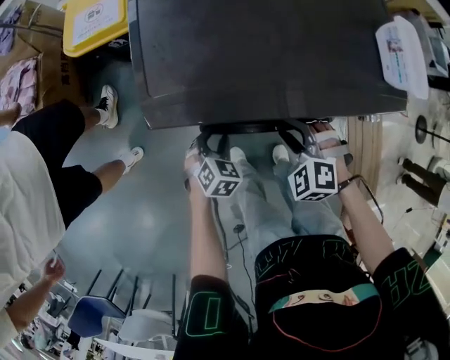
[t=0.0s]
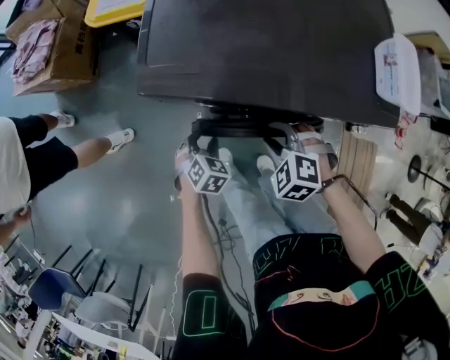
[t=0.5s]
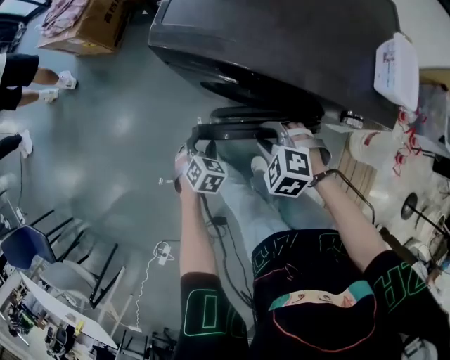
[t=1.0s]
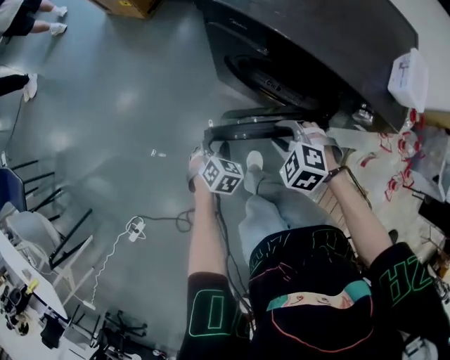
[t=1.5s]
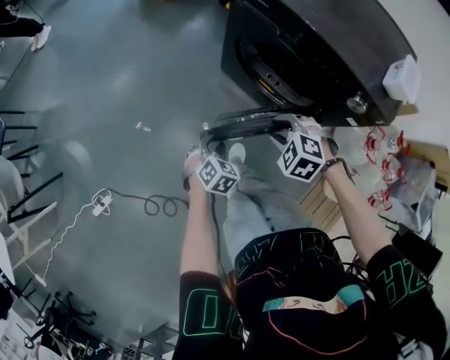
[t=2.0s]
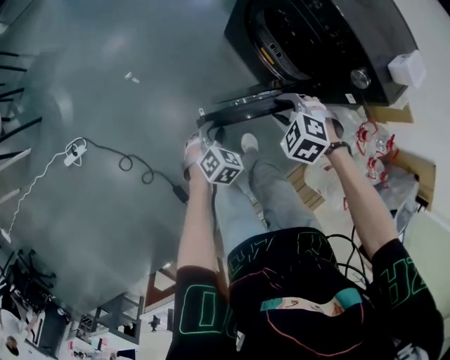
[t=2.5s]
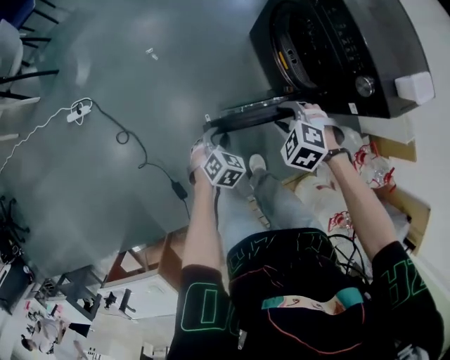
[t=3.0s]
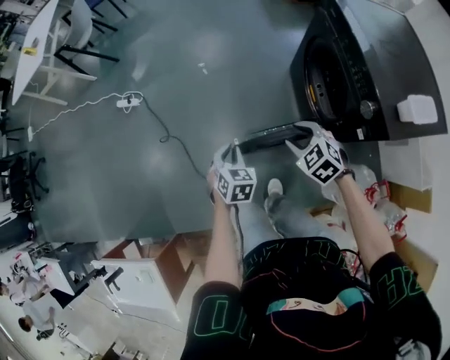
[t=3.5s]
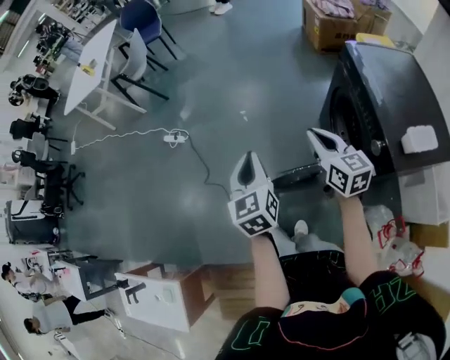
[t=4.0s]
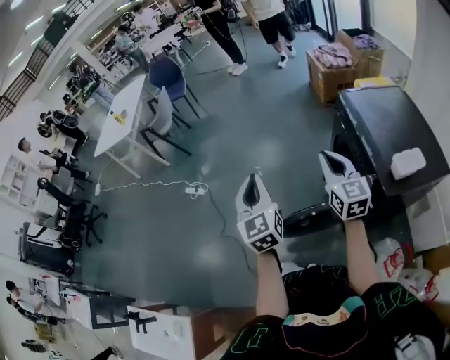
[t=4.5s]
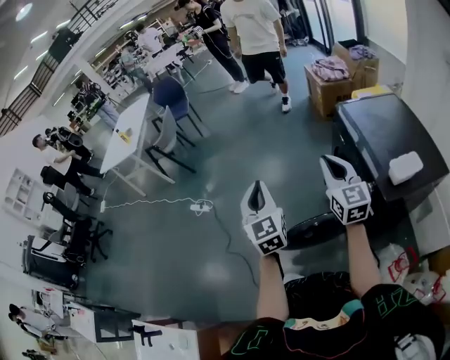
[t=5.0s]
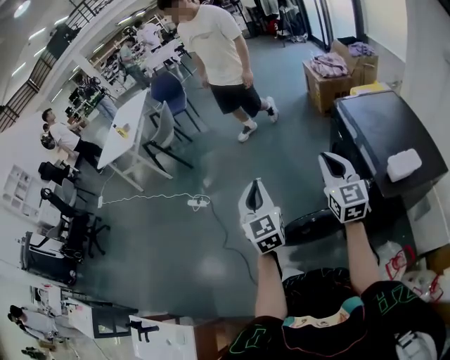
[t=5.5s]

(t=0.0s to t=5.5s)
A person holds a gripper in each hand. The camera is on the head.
t=0.0s - t=2.0s: The left gripper changes place by about 35 cm, and rotates some 50 degrees. The right gripper shifts by about 25 cm, and turns by some 40 degrees.
t=2.0s - t=3.5s: The left gripper shifts by some 30 cm, and twists about 50 degrees counterclockwise, seen from behind; the right gripper changes place by some 20 cm, and changes its angle by roughly 30 degrees.
t=3.5s - t=5.5s: The grippers both shift upward by roughly 35 cm. The left gripper tilts its fingers roughly 50 degrees upward, while the right gripper angles its fingers upward, by some 50 degrees, and closes up.

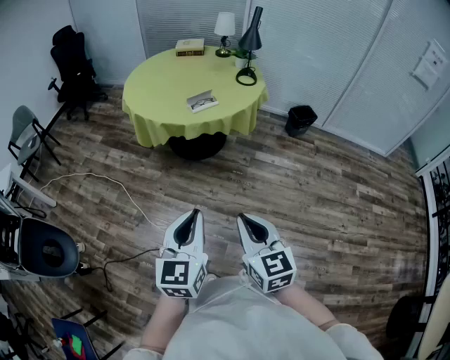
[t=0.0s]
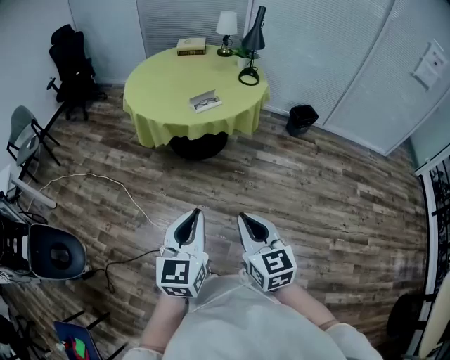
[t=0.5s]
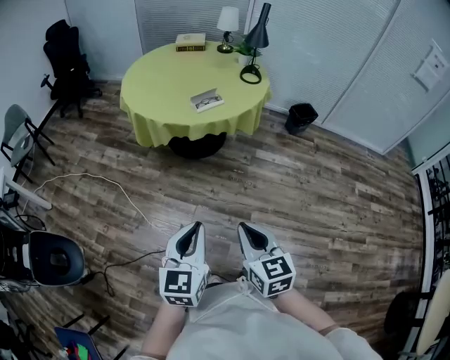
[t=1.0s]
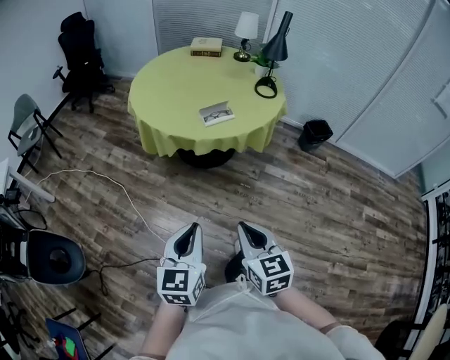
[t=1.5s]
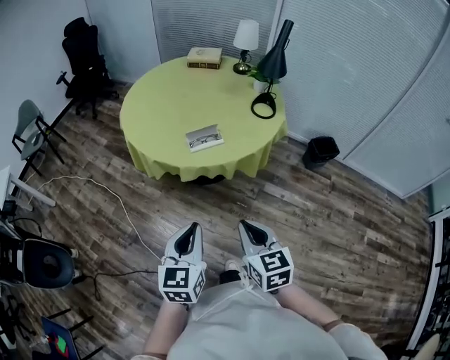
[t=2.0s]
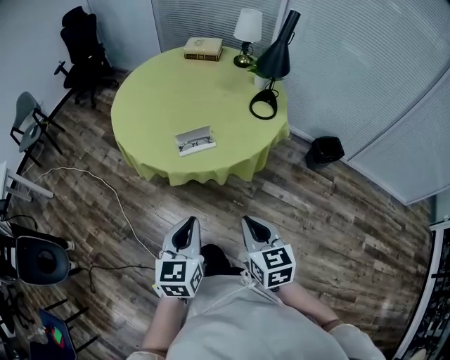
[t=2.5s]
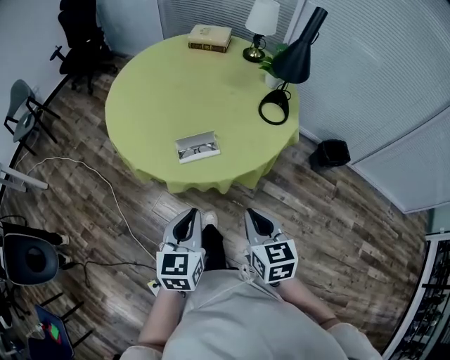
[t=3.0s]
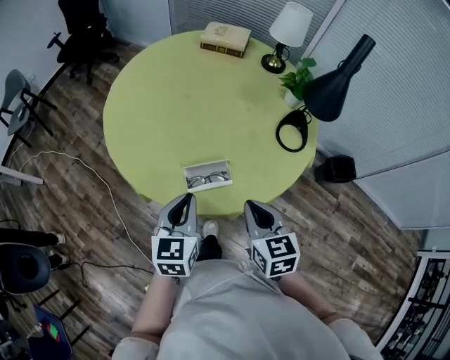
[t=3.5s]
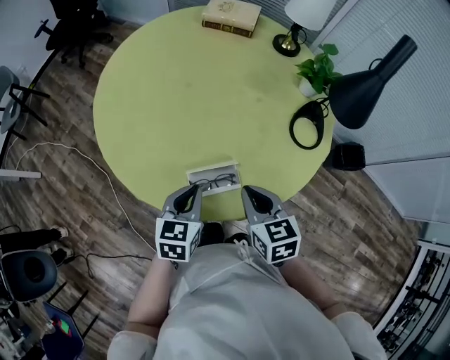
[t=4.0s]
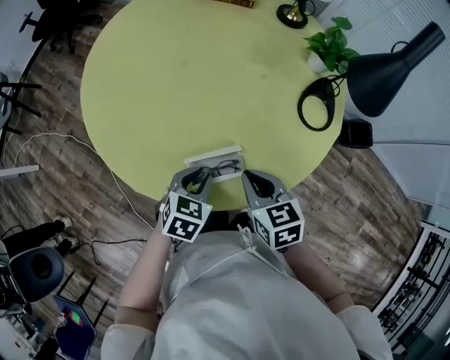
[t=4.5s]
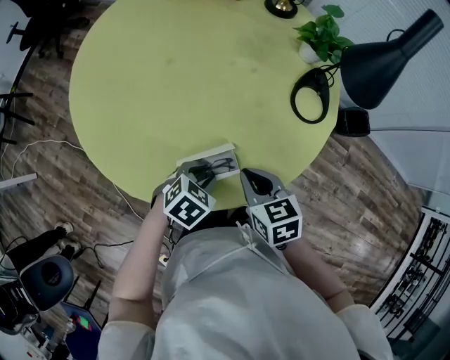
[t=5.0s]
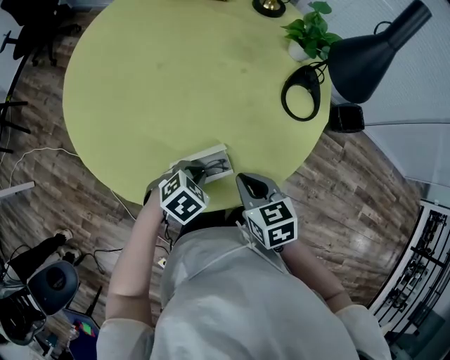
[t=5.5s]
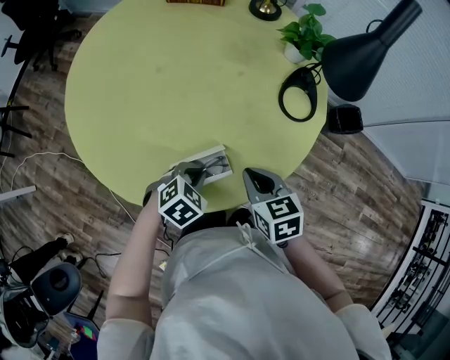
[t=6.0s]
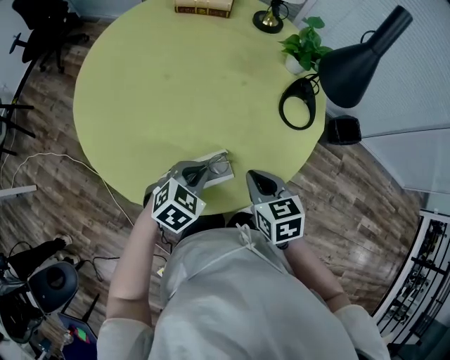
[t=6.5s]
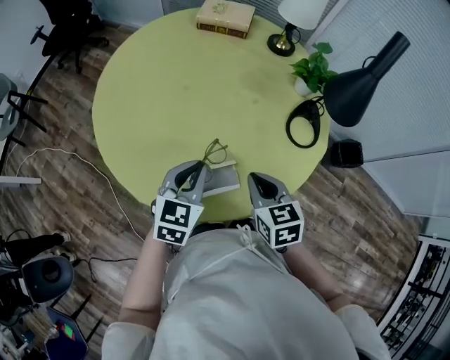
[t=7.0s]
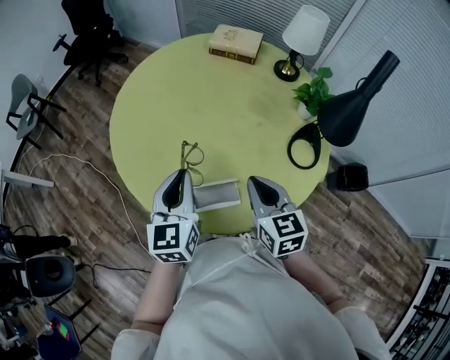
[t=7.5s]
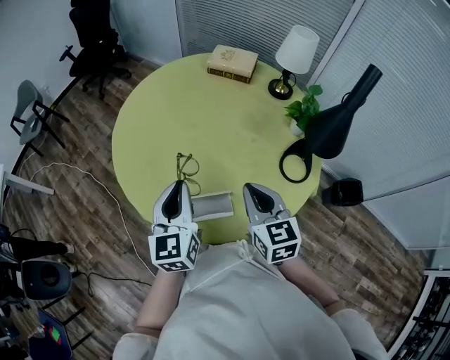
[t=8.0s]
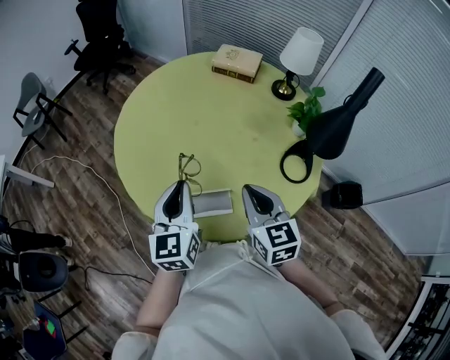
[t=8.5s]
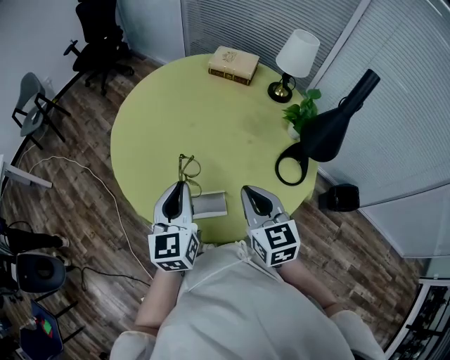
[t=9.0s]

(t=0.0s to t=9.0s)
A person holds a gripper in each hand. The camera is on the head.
t=0.0s - t=2.0s: The two grippers go roughly 30 cm forward.
t=2.0s - t=4.5s: The two grippers travel together, forward, approximately 50 cm. The left gripper heads downward, covering about 25 cm, and points its fingers roughly 30 degrees further downward. The right gripper swivels some 20 degrees.
t=4.5s - t=7.0s: The right gripper moves approximately 5 cm; the left gripper is displaced upward by some 10 cm, and swivels approximately 20 degrees.
t=7.0s - t=9.0s: Both grippers travel together upward, some 10 cm. The left gripper changes its angle by roughly 40 degrees; the right gripper swivels approximately 20 degrees.

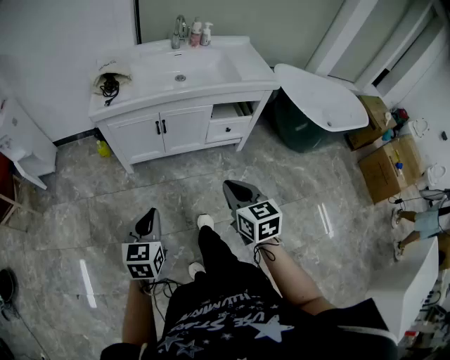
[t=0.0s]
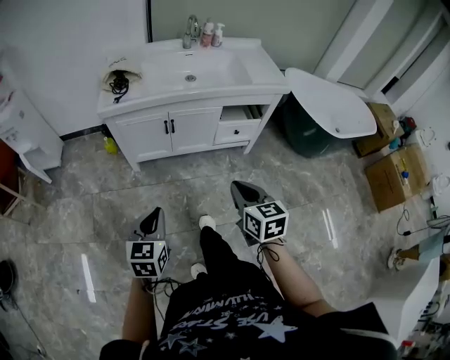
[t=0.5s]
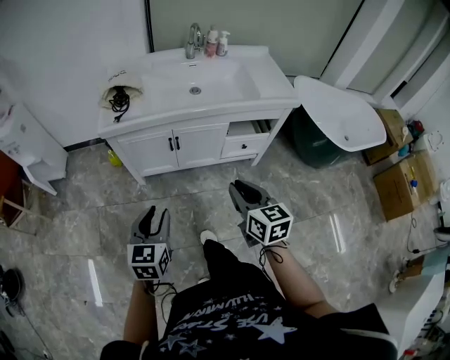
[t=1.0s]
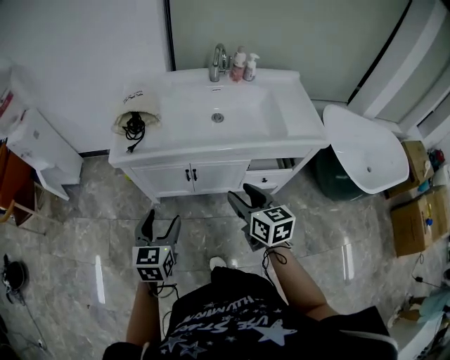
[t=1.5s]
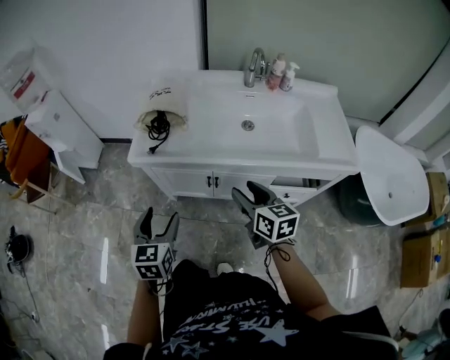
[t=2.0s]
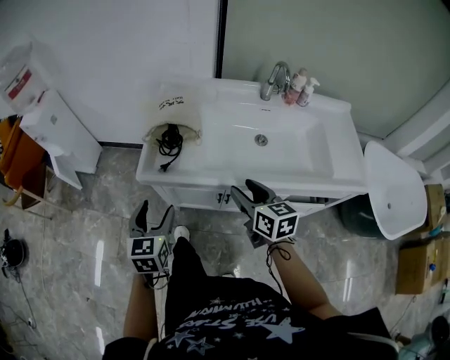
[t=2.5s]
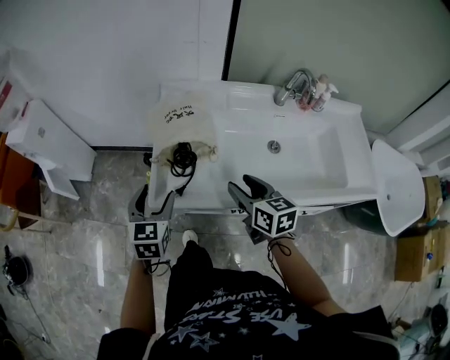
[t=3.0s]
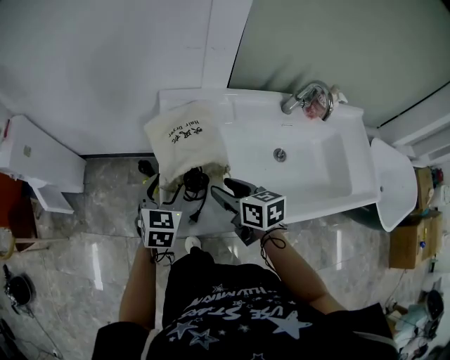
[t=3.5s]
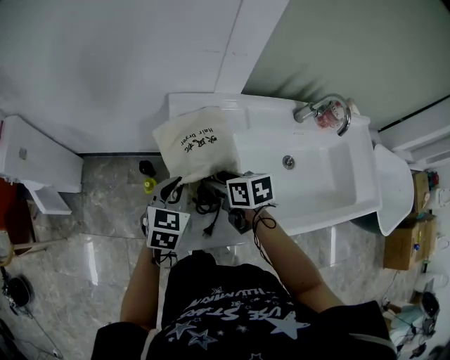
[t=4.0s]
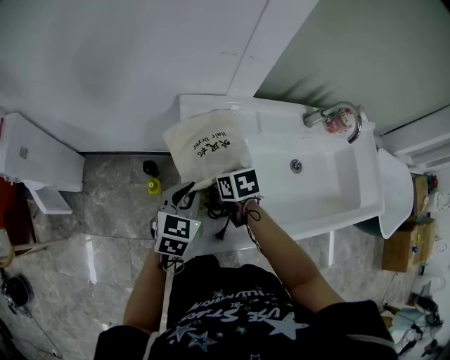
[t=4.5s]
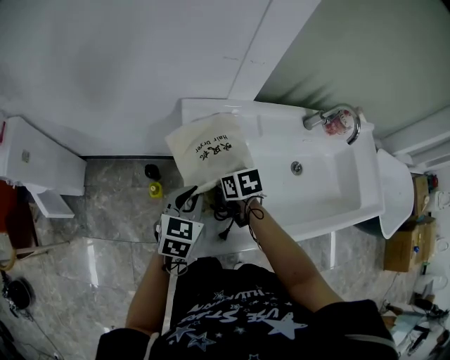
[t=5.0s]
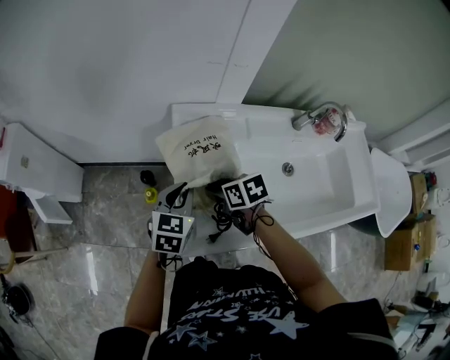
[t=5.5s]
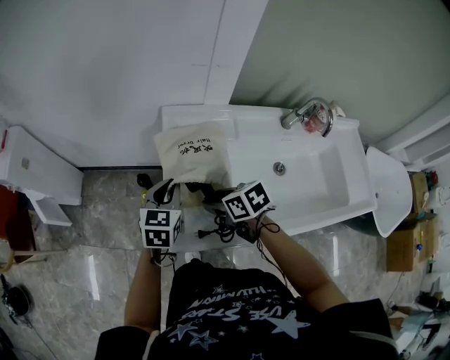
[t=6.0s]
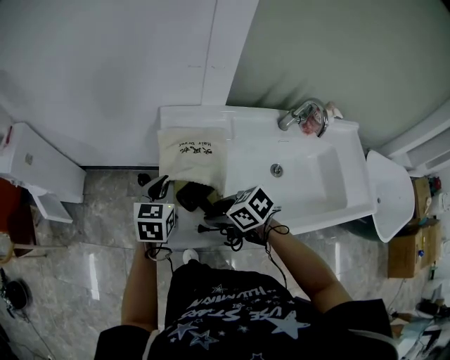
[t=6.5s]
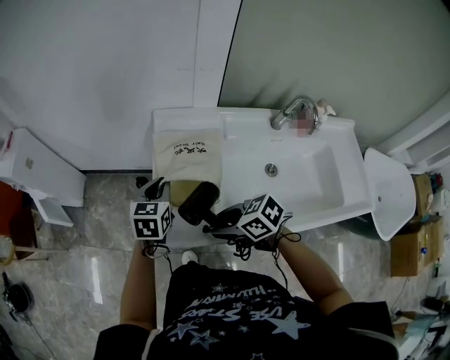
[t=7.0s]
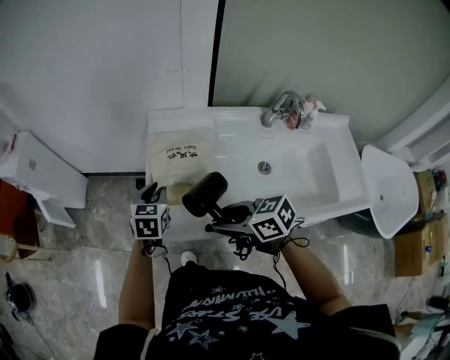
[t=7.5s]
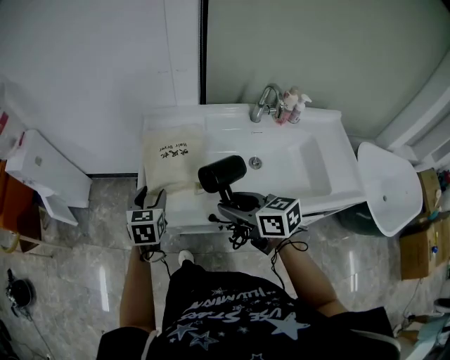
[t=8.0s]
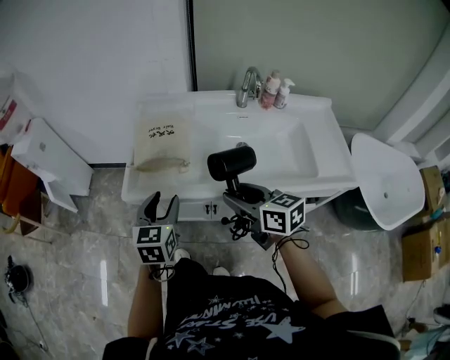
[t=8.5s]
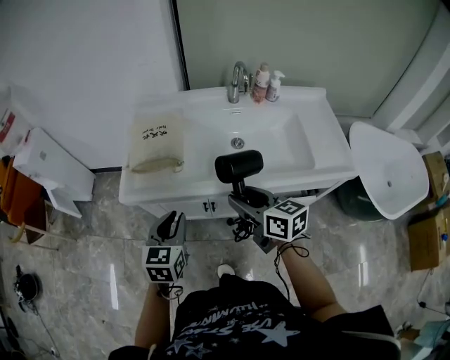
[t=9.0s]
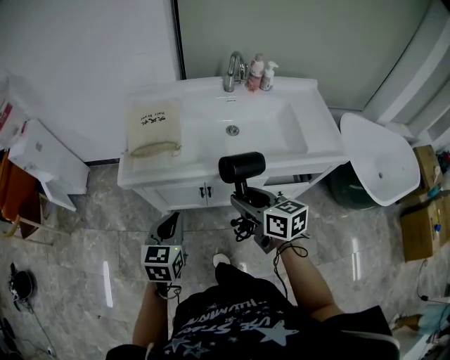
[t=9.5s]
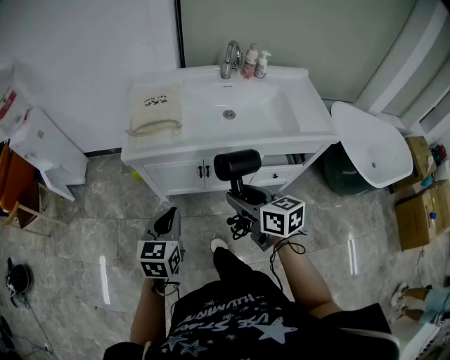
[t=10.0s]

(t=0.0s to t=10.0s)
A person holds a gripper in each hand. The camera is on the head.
t=0.0s - t=2.0s: The two grippers go some 35 cm forward. The right gripper swivels approximately 20 degrees, and opens. The left gripper opens its fingers.
t=2.0s - t=4.0s: The two grippers travel together, forward, roughly 40 cm. The right gripper swivels roughly 30 degrees; the left gripper changes its angle by approximately 30 degrees, and closes.
t=4.0s - t=6.0s: The right gripper travels backward by some 5 cm.
t=6.0s - t=8.0s: The right gripper is displaced backward, upward and to the right by about 25 cm, and swivels some 30 degrees. The left gripper heads backward, covering roughly 10 cm, and opens.
t=8.0s - t=10.0s: The grippers both shift backward by about 30 cm. The left gripper closes its fingers.

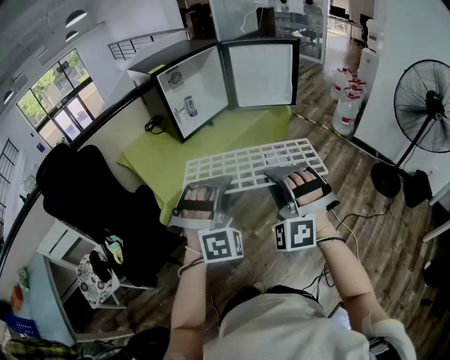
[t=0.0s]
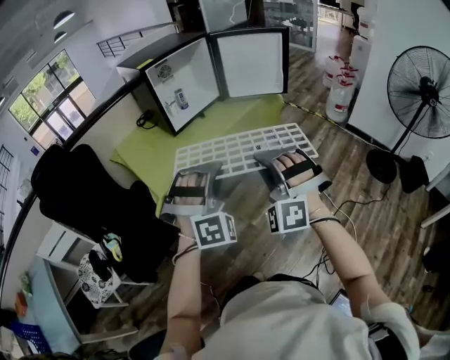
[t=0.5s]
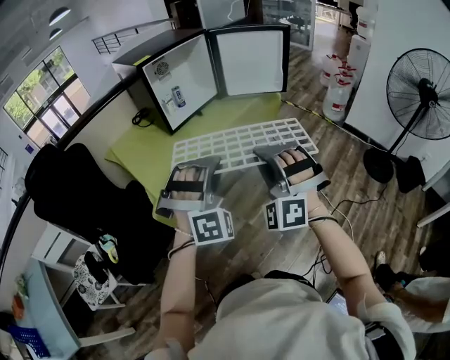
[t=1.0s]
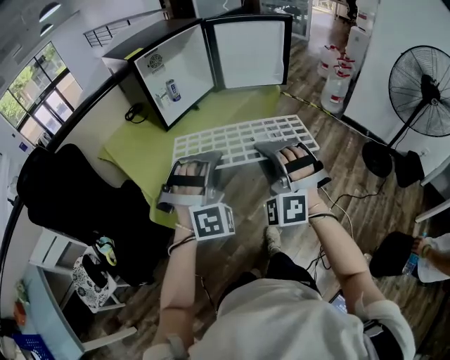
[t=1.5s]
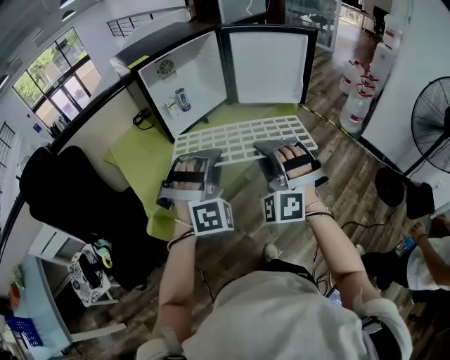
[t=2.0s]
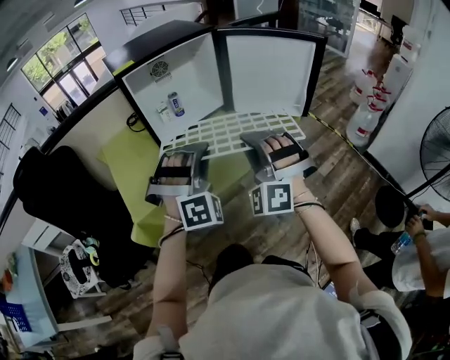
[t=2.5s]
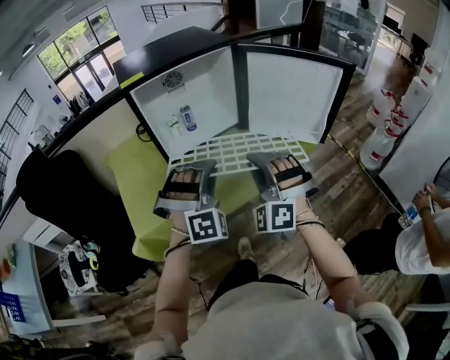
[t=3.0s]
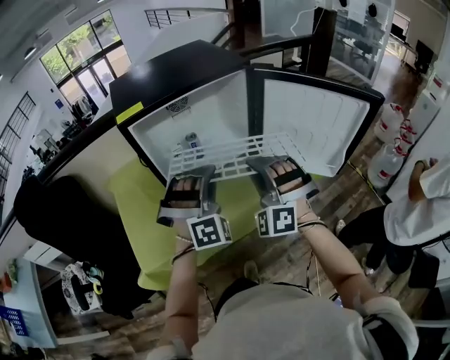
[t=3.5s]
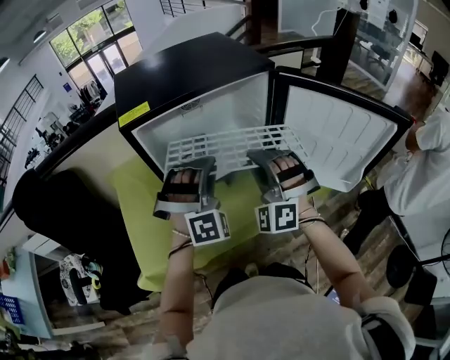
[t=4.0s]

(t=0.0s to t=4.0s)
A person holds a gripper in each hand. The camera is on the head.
t=0.0s - t=2.0s: Both grippers move forward, approximately 20 cm.
t=2.0s - t=4.0s: The two grippers go roughly 40 cm forward.
